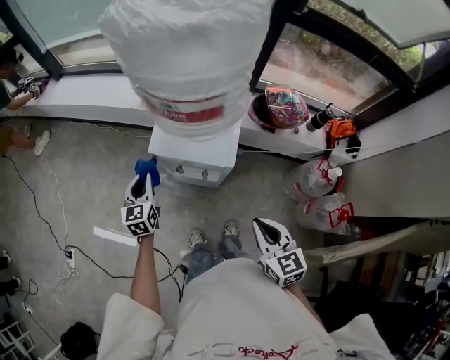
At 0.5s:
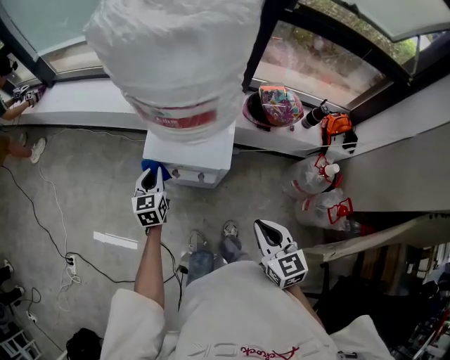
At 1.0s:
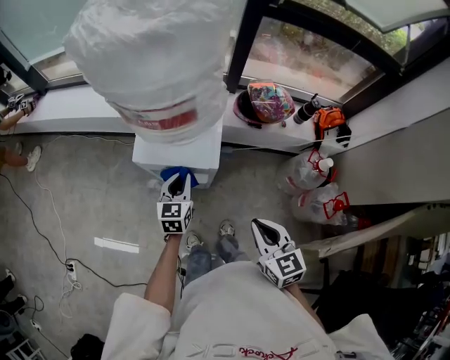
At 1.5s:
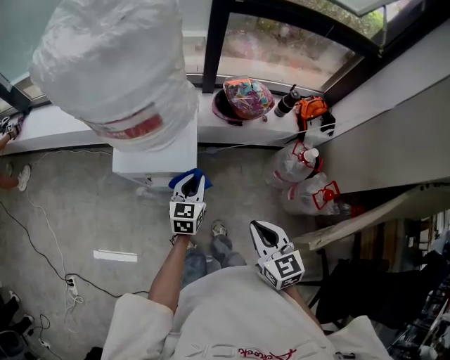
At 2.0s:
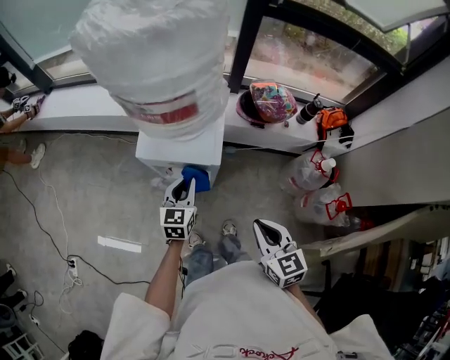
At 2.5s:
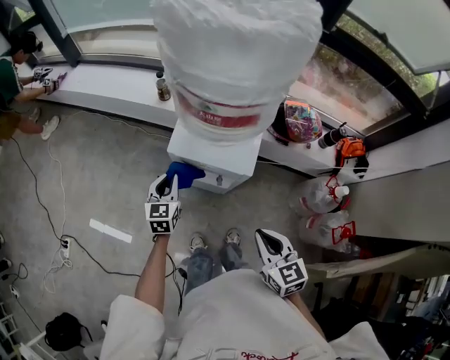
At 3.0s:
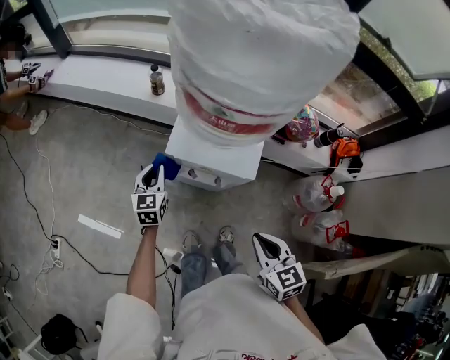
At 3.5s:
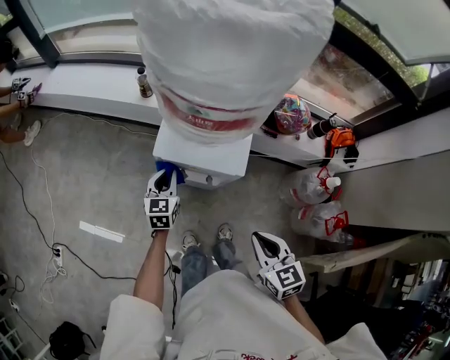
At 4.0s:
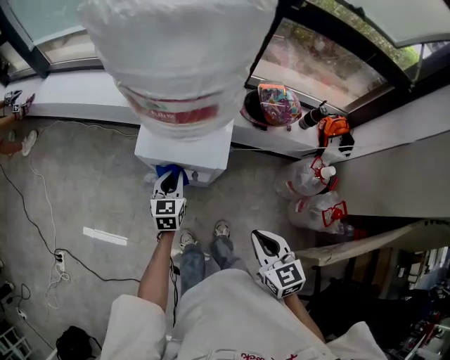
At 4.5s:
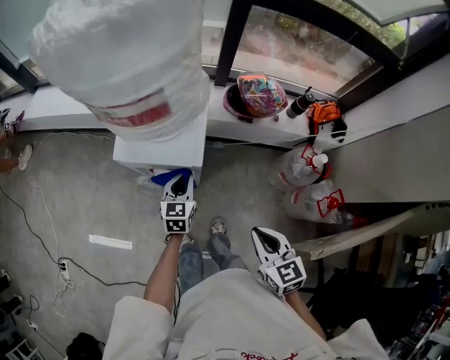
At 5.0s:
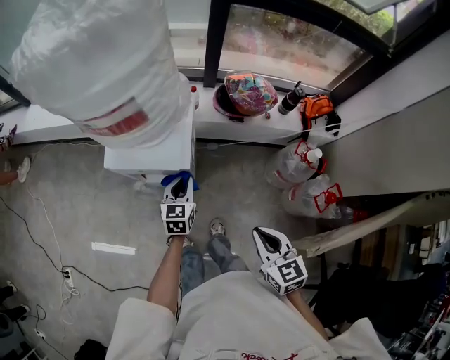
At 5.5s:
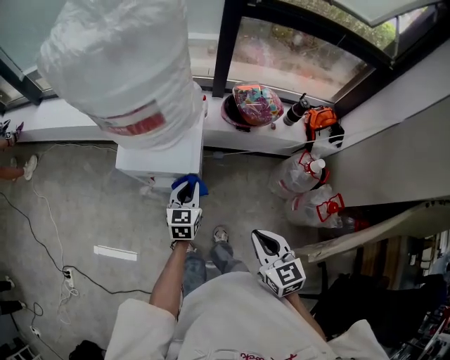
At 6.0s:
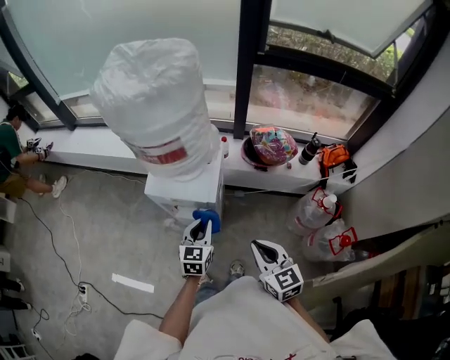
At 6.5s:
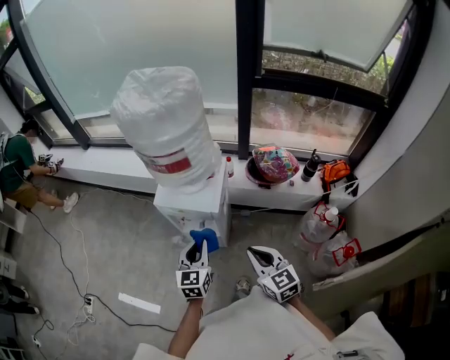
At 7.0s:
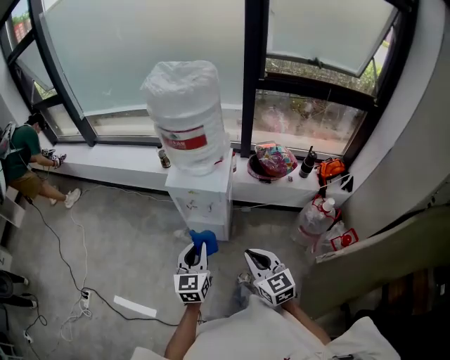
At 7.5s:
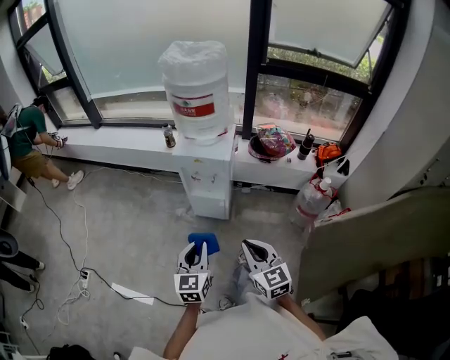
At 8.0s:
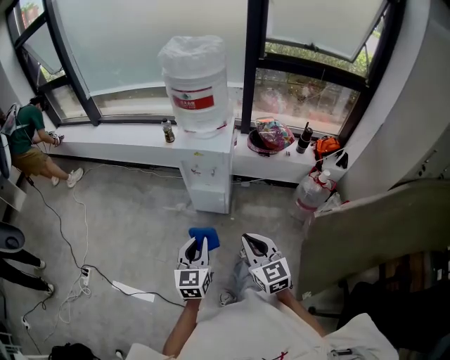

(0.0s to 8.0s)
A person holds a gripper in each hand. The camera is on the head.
0.0s - 2.0s: The left gripper heads to the right, covering about 20 cm.
2.0s - 4.0s: The right gripper travels to the left and back again, roughly 10 cm each way. Meanwhile the left gripper goes some 5 cm downward, and reaches approximately 20 cm to the left, then returns.
4.0s - 6.0s: The left gripper is displaced to the right, upward and backward by approximately 15 cm, while the right gripper shifts by some 5 cm.
6.0s - 8.0s: Both grippers travel together backward and to the left, about 35 cm.

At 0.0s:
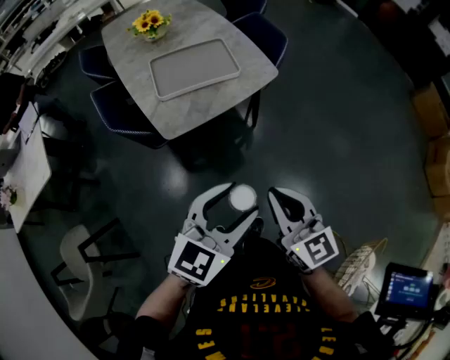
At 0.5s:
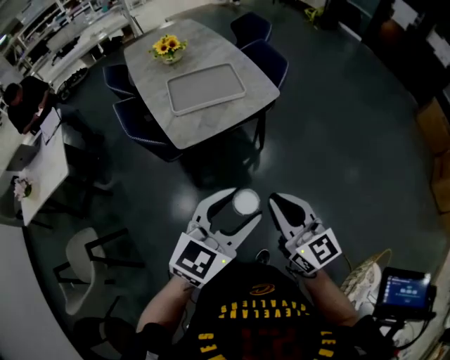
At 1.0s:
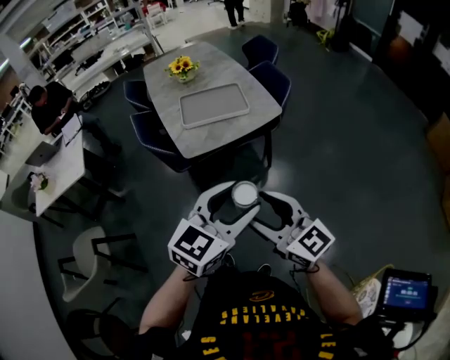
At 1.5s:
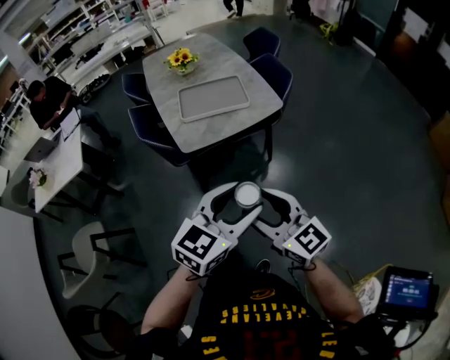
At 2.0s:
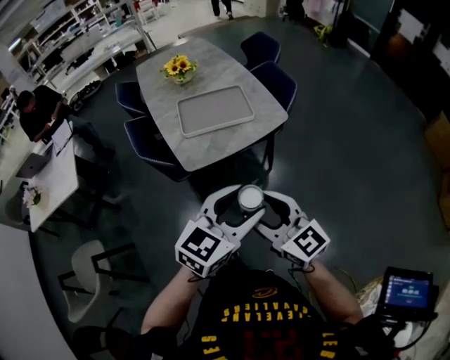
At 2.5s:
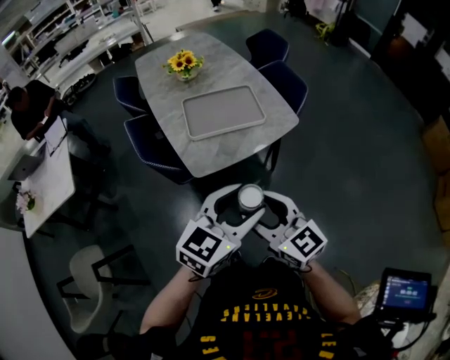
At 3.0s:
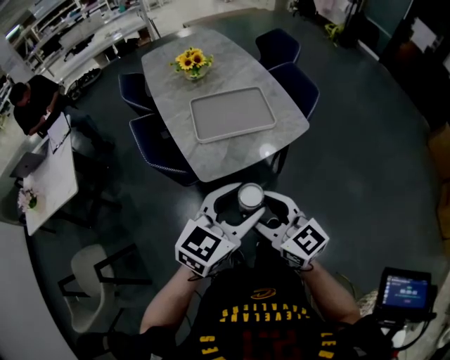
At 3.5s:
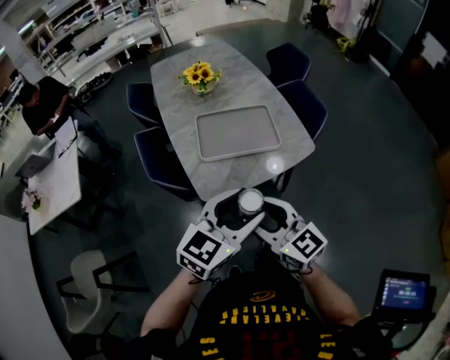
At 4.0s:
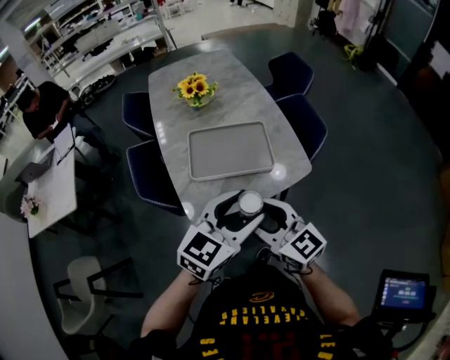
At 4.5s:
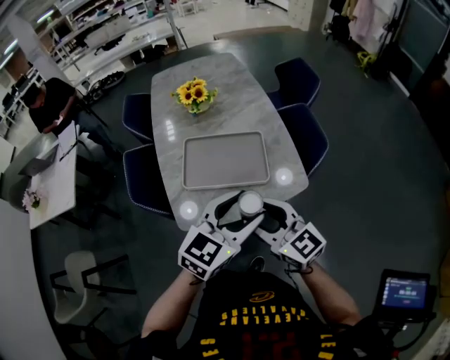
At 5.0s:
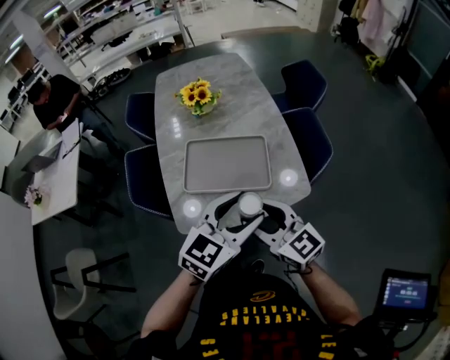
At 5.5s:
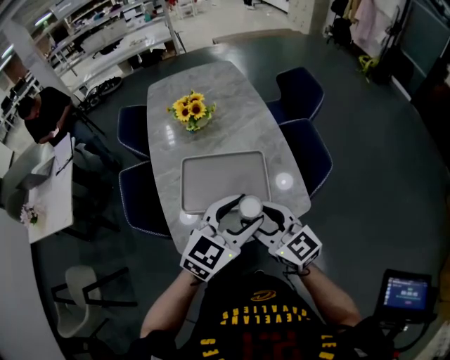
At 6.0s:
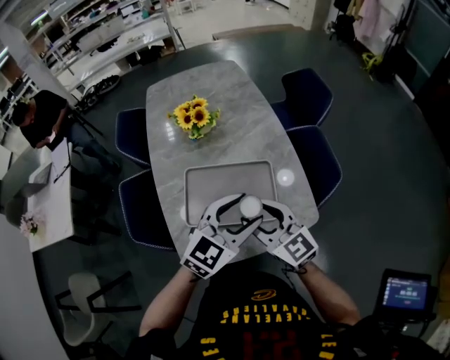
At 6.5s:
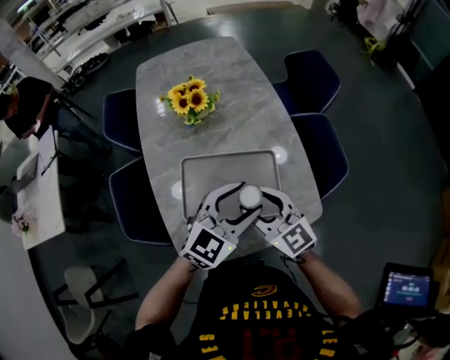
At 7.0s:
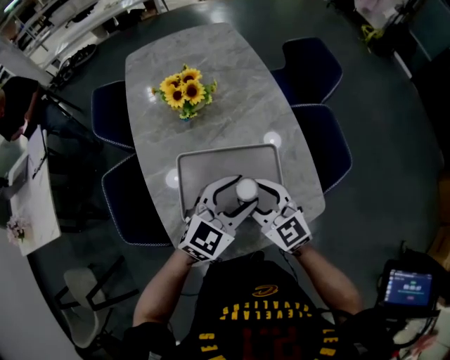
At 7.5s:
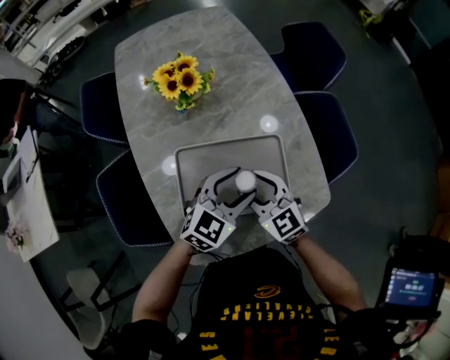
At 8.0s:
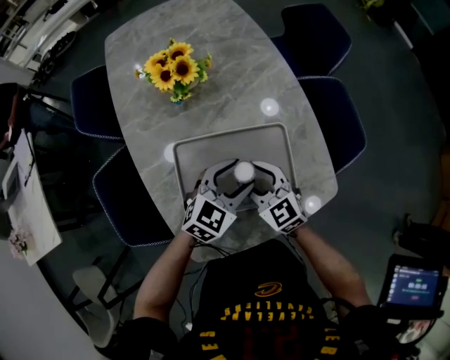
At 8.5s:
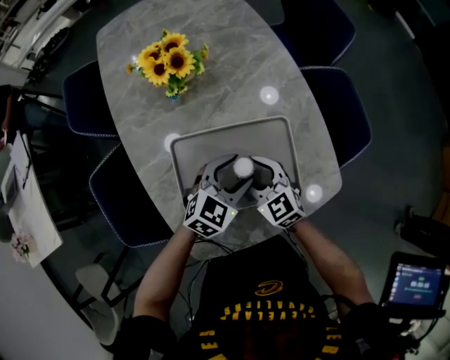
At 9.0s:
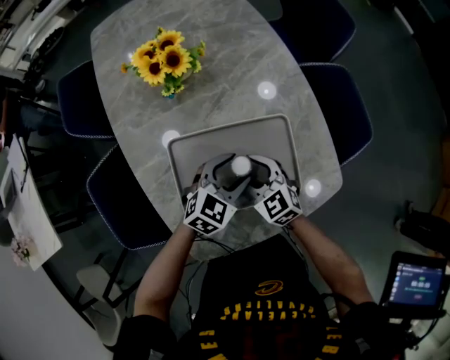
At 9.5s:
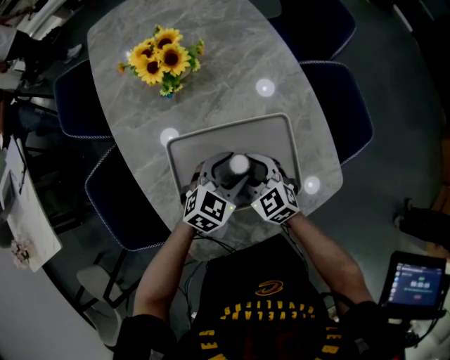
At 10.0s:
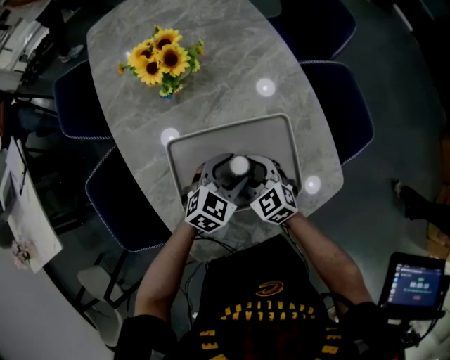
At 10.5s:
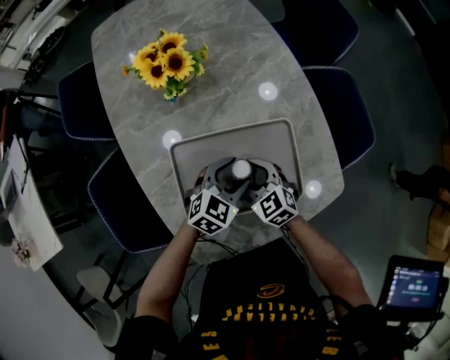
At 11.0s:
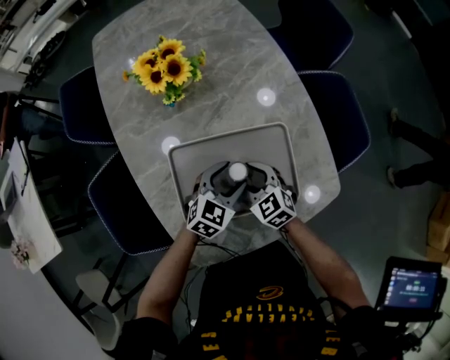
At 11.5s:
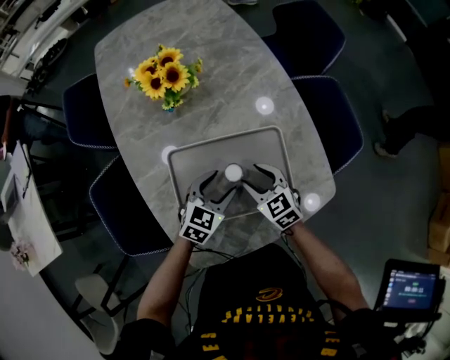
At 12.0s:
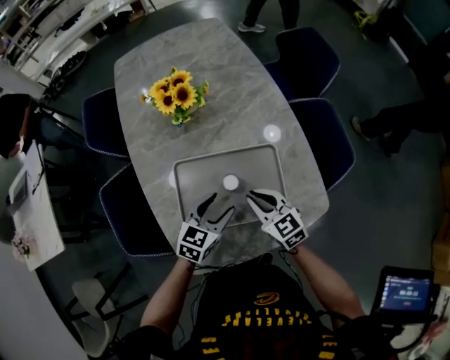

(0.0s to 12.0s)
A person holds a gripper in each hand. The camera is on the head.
0.0s - 2.0s: The left gripper reaches about 5 cm backward, then returns, while the right gripper moves to the left, approximately 5 cm, goes backward and returns, approximately 10 cm each way, and opens up.
2.0s - 4.0s: Both grippers travel together forward, roughly 25 cm.
4.0s - 6.0s: Both grippers travel together forward, some 20 cm.
6.0s - 8.0s: Both grippers move downward and forward, some 20 cm. The right gripper turns by roughly 20 degrees.
8.0s - 10.0s: Both grippers move downward, some 10 cm.
10.0s - 12.0s: The right gripper shifts about 10 cm upward, and closes up. Meanwhile the left gripper goes roughly 5 cm upward, and rotates some 20 degrees.

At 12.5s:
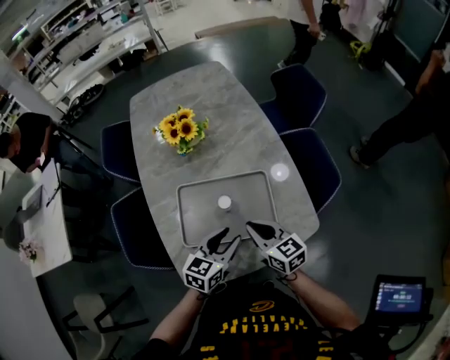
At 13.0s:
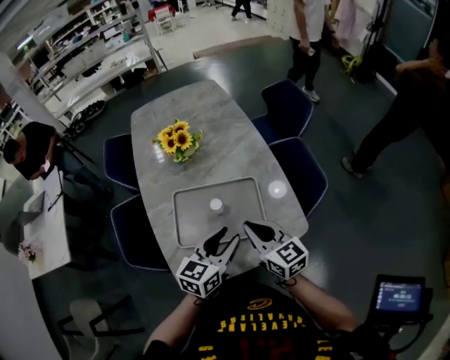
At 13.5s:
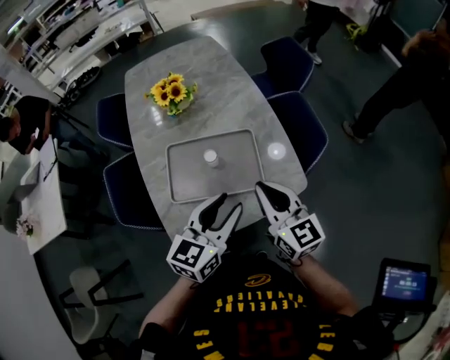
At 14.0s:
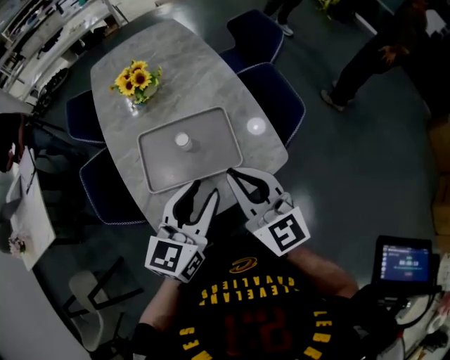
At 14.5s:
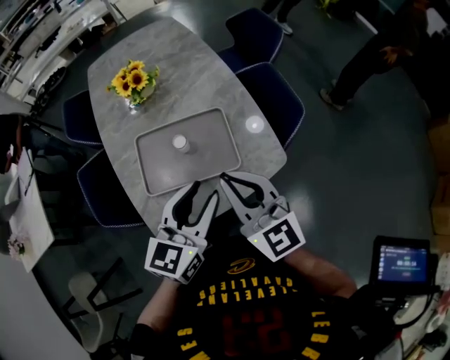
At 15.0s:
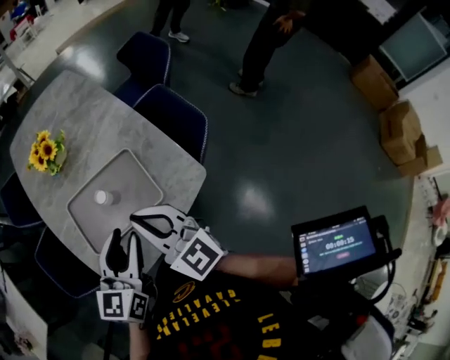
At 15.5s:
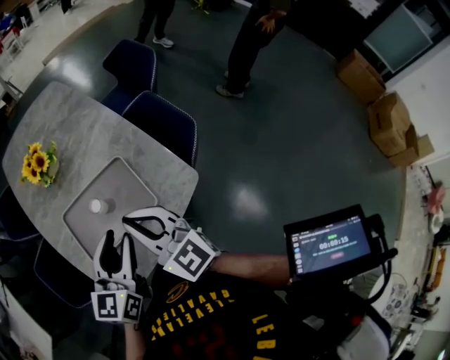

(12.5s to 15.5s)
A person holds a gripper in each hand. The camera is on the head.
12.5s - 14.0s: The two grippers go about 20 cm upward and backward. The right gripper turns by about 30 degrees.
14.0s - 15.5s: There are only small adjustments of the grippers.

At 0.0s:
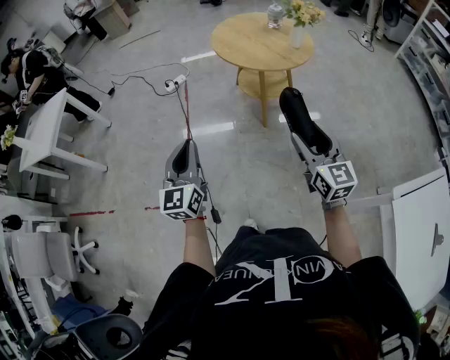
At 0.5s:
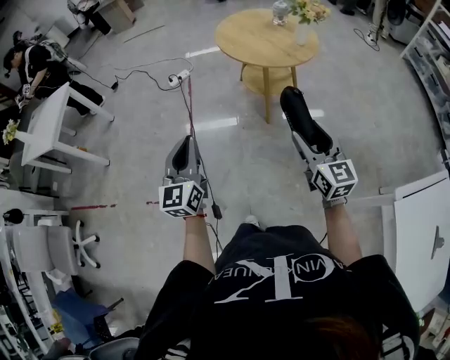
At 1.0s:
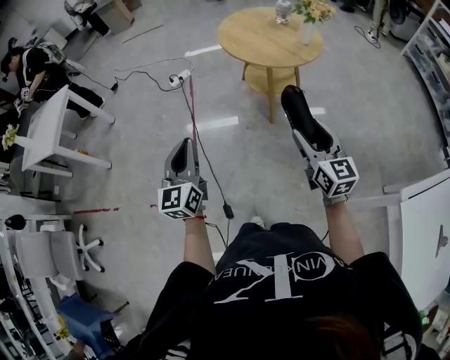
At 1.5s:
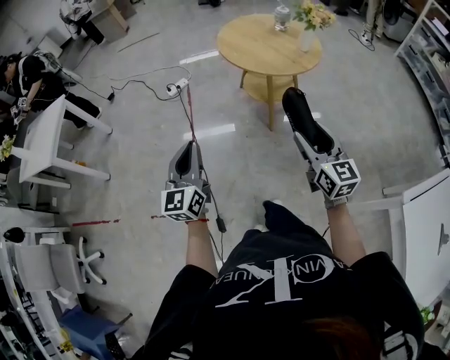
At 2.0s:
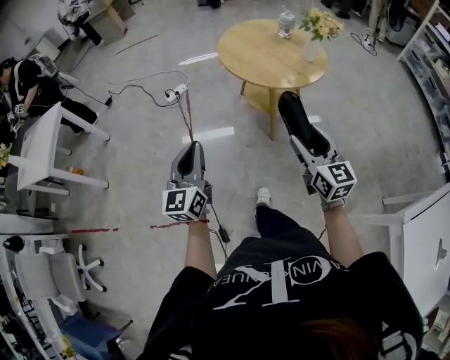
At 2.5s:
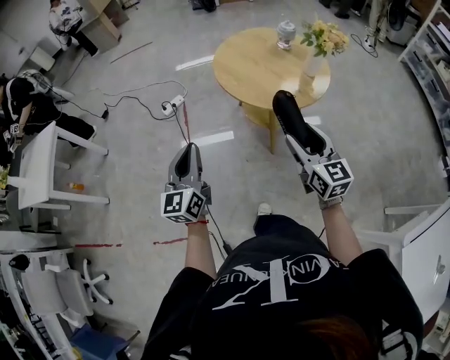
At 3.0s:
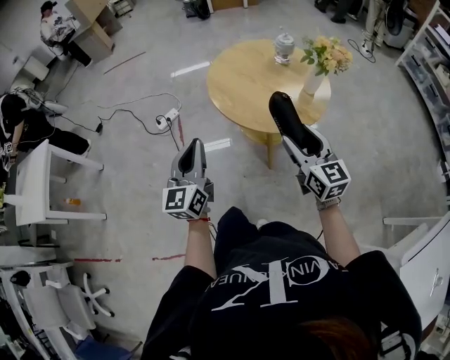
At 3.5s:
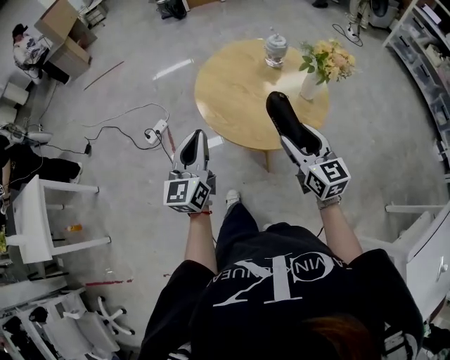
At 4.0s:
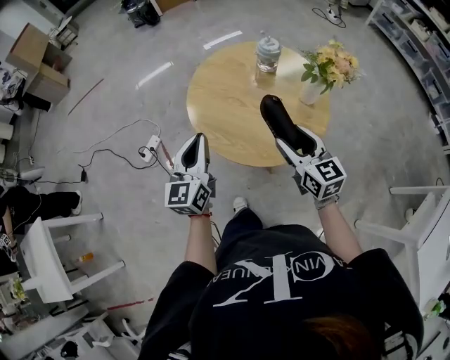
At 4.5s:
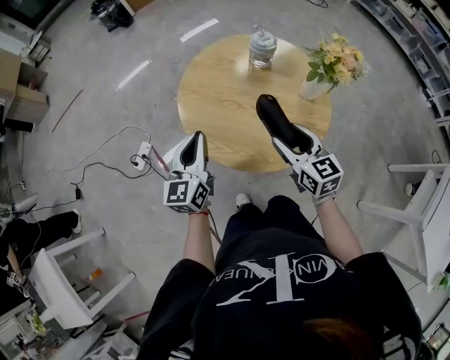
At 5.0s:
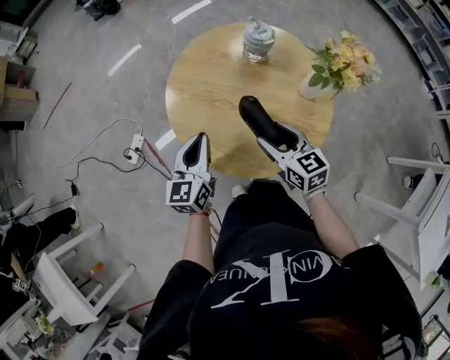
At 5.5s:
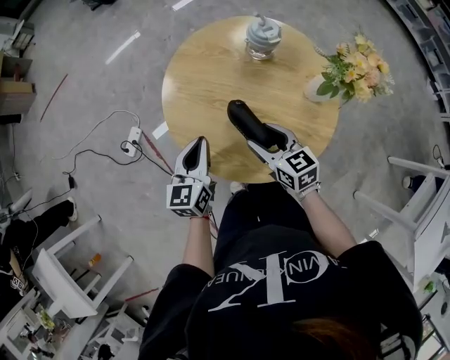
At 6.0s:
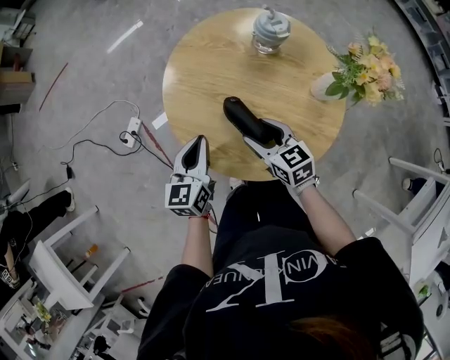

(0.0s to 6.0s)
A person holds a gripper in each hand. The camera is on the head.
0.0s - 2.0s: The grippers both shift forward by roughly 15 cm.
2.0s - 4.0s: The grippers both shift forward by some 40 cm. The left gripper swivels approximately 20 degrees.
4.0s - 6.0s: The right gripper is displaced downward, forward and to the left by some 20 cm, and rotates roughly 20 degrees; the left gripper shifts approximately 20 cm downward and forward, and turns by approximately 20 degrees.
